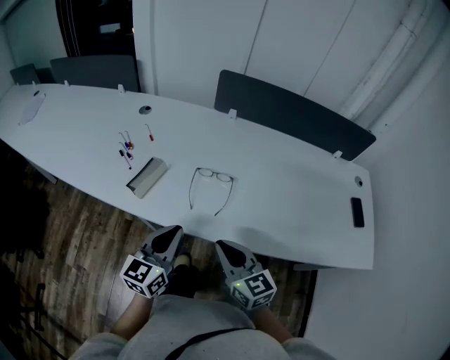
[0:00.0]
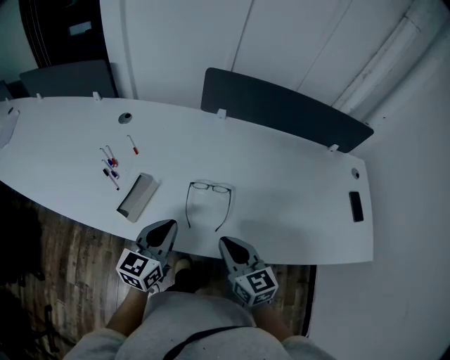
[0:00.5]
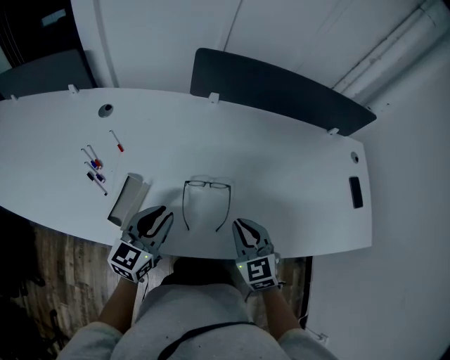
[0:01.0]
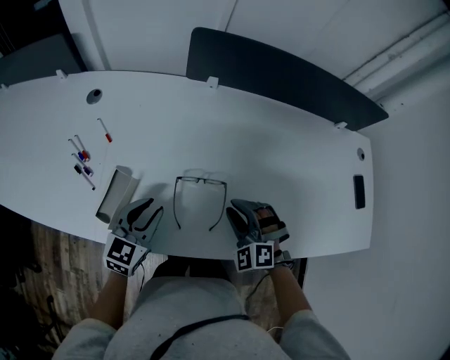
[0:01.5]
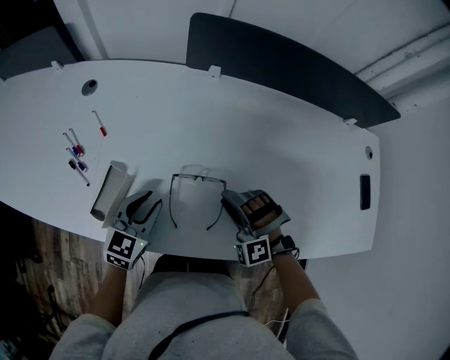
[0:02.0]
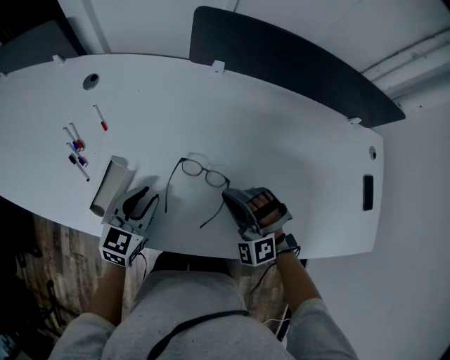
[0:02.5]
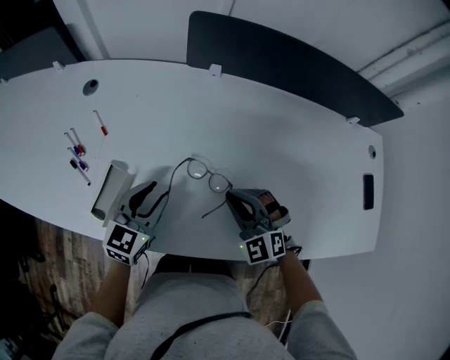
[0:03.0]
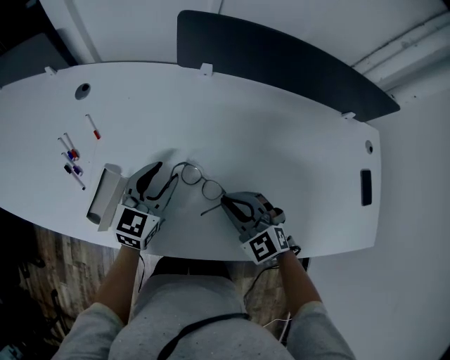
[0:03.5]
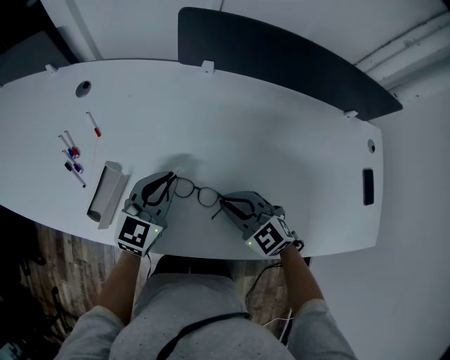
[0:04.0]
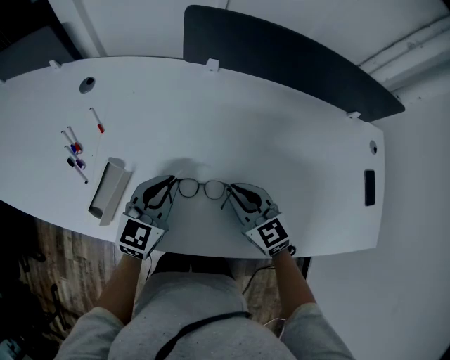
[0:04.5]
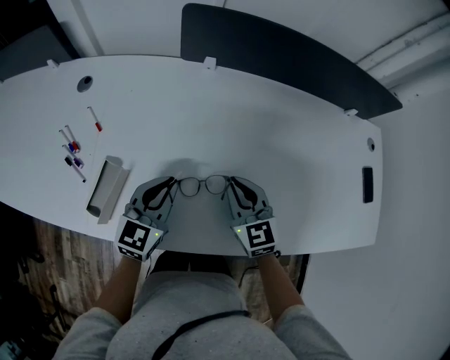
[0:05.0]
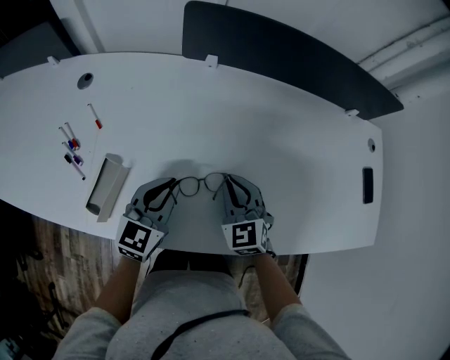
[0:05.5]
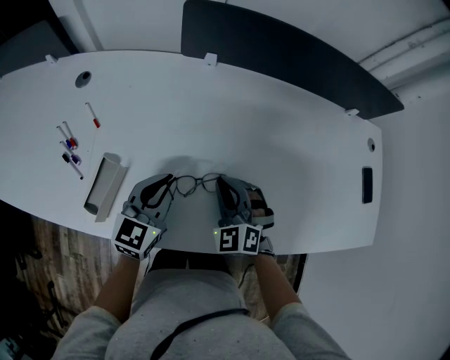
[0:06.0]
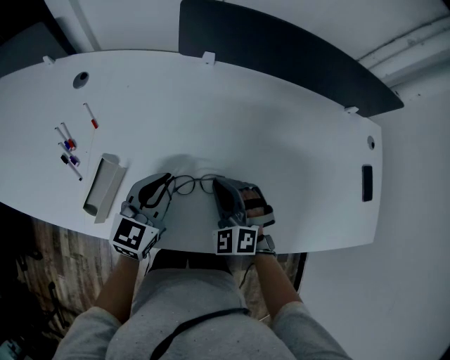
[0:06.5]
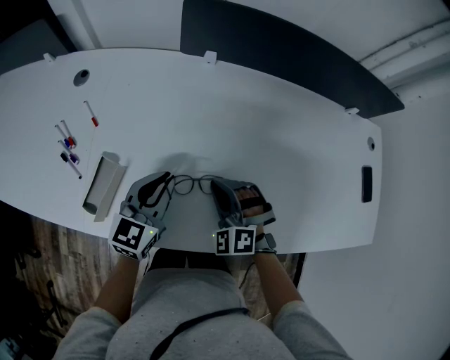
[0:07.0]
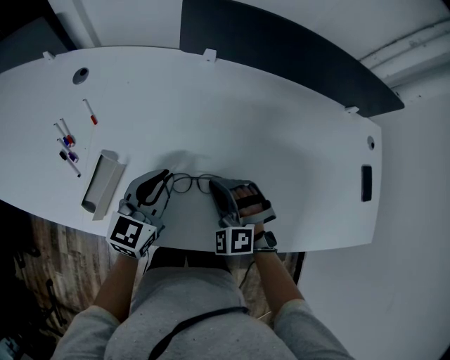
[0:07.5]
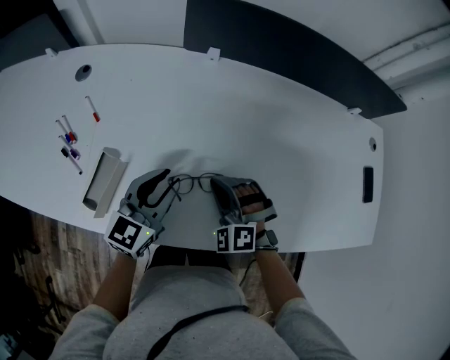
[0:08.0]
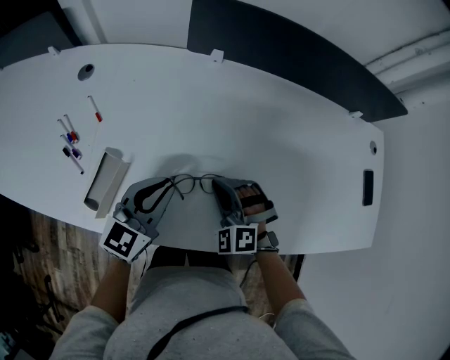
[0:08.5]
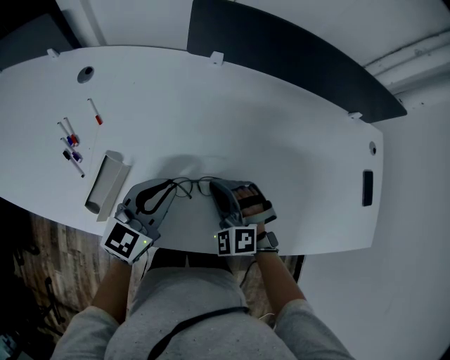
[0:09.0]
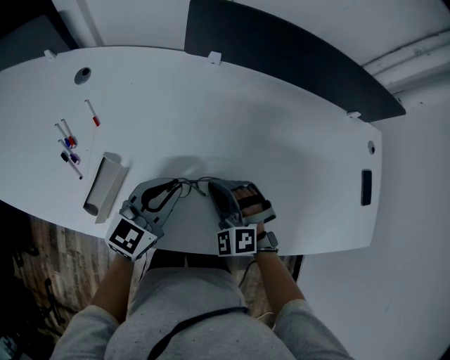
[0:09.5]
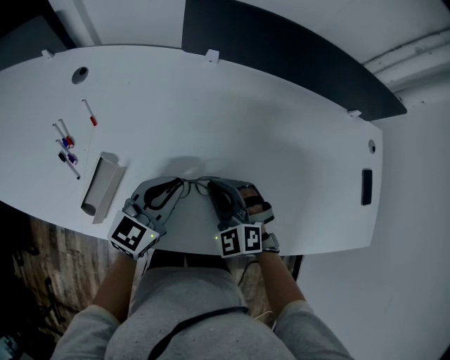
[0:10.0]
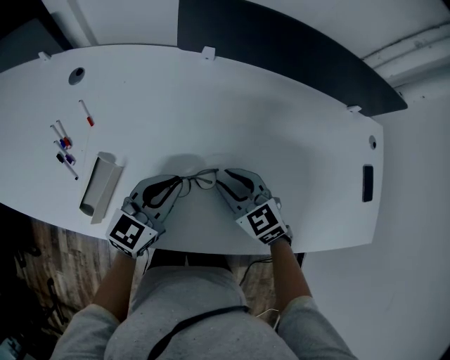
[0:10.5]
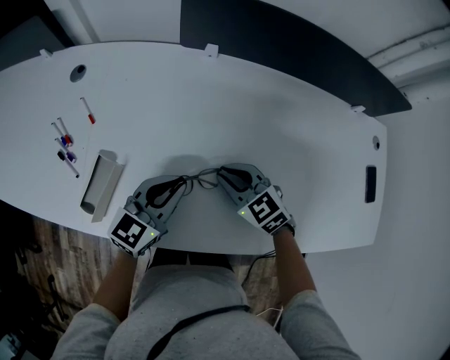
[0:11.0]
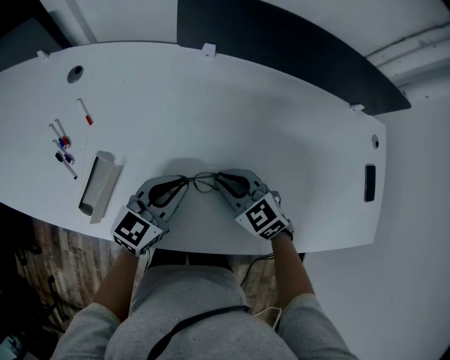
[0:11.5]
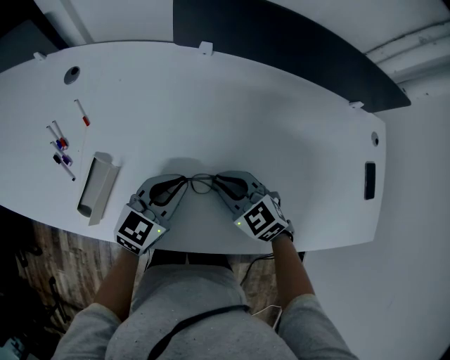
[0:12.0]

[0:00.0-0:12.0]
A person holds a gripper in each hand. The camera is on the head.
0:00.0 to 0:02.0: The grippers both shift forward and downward by approximately 25 cm. The right gripper rolls counterclockwise, seen from behind, by some 80 degrees, and opens. Meanwhile the left gripper swivels about 30 degrees, and opens its fingers.
0:02.0 to 0:04.0: The right gripper rotates around the line of its fingers by about 50 degrees, clockwise from behind, and closes its fingers; the left gripper heads to the right, covering some 5 cm.
0:04.0 to 0:06.0: The right gripper turns by some 30 degrees.
0:06.0 to 0:08.0: The right gripper rotates roughly 20 degrees.
0:08.0 to 0:10.0: There are only small adjustments of the grippers.
0:10.0 to 0:12.0: The right gripper rotates some 30 degrees.

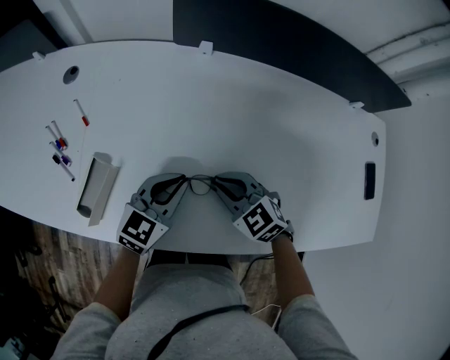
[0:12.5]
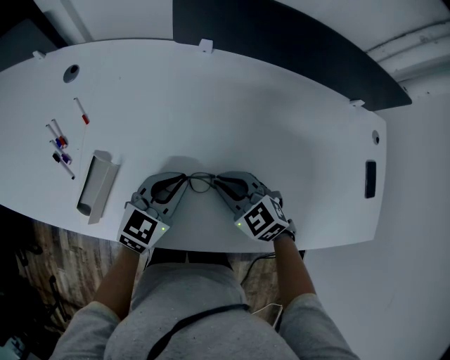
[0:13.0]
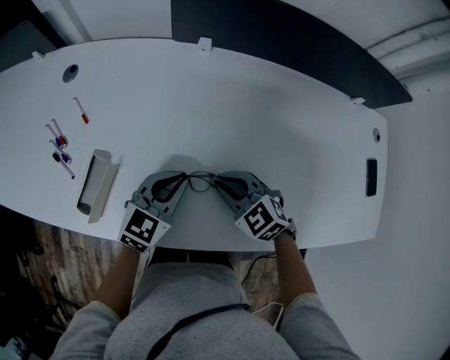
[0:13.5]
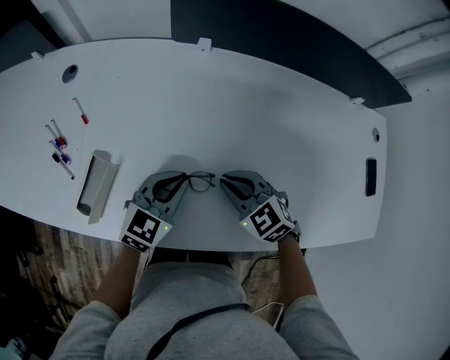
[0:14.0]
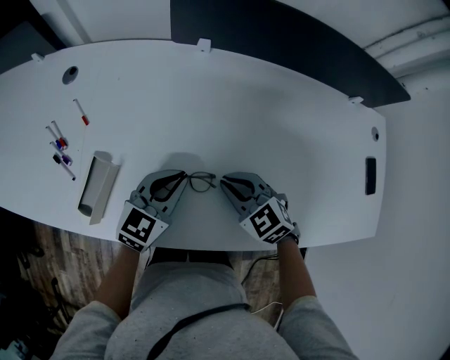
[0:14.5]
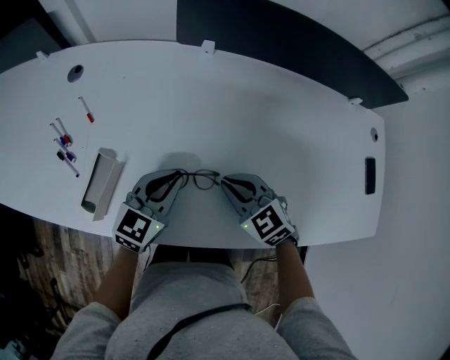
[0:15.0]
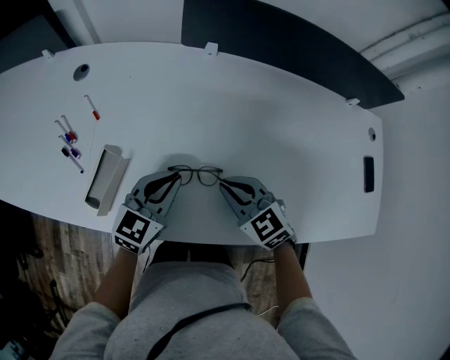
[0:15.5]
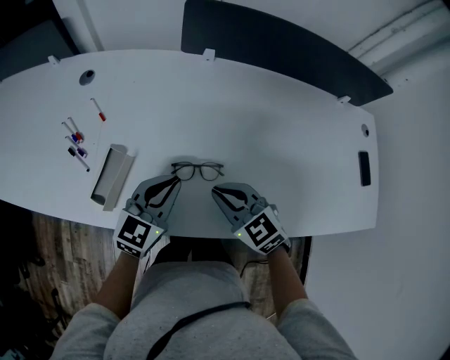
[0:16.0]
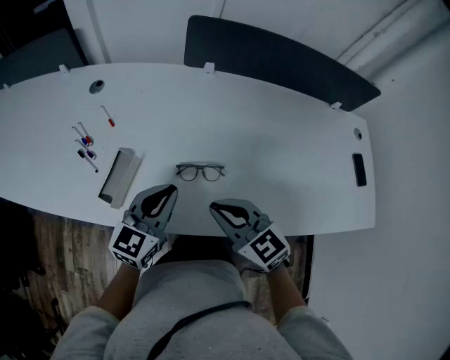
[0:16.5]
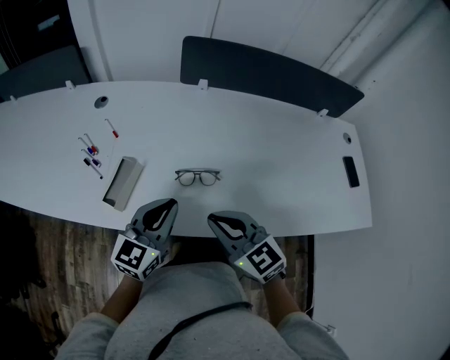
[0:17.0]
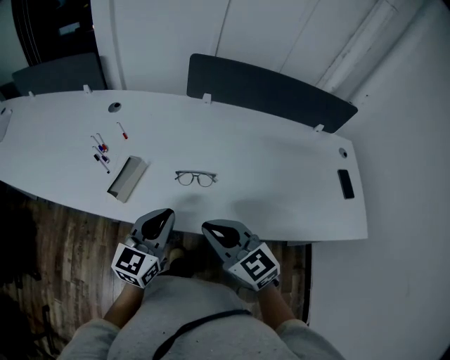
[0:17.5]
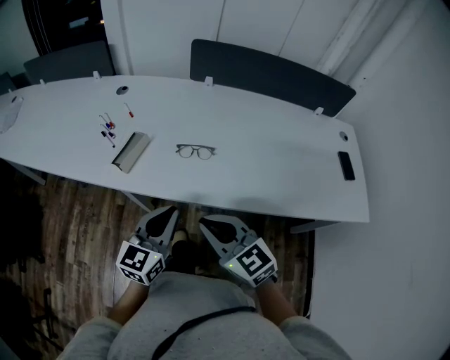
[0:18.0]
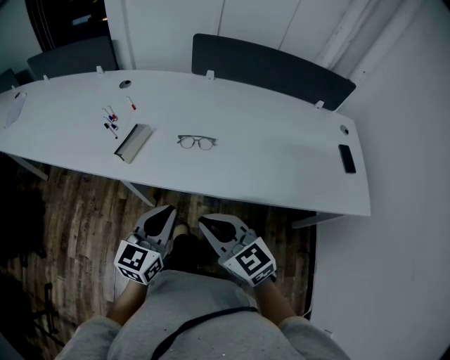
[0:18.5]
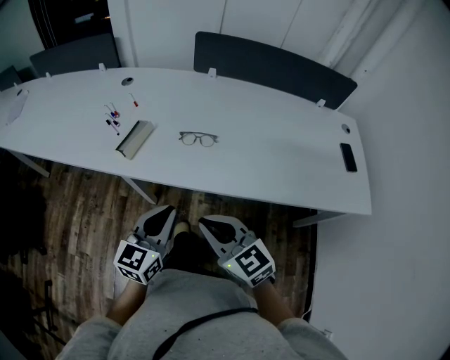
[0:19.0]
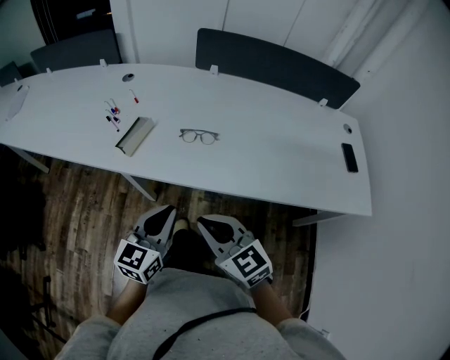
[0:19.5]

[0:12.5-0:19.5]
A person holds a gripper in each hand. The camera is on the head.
0:12.5 to 0:14.5: The grippers make only small movements.
0:14.5 to 0:16.0: The right gripper moves backward, to the left and upward, about 10 cm, while the left gripper moves to the left and backward, approximately 10 cm.
0:16.0 to 0:17.5: Both grippers move backward and upward, roughly 20 cm.
0:17.5 to 0:19.5: The two grippers go some 15 cm backward.

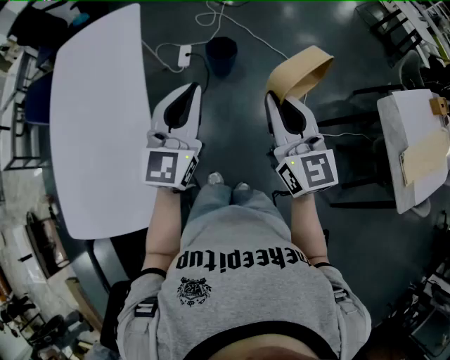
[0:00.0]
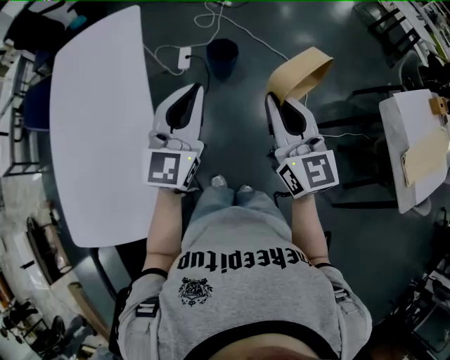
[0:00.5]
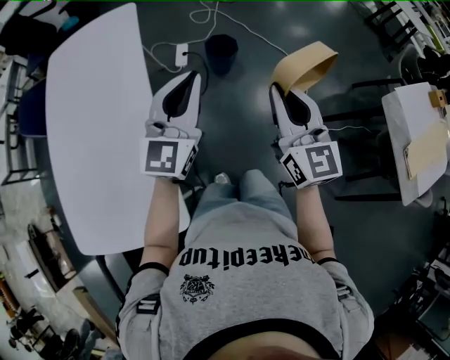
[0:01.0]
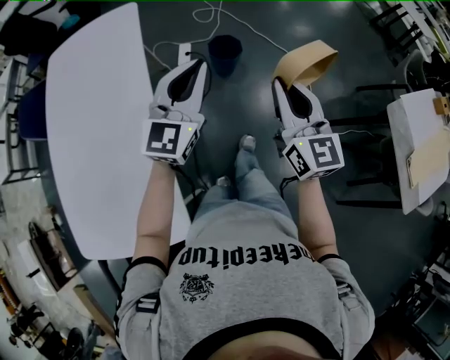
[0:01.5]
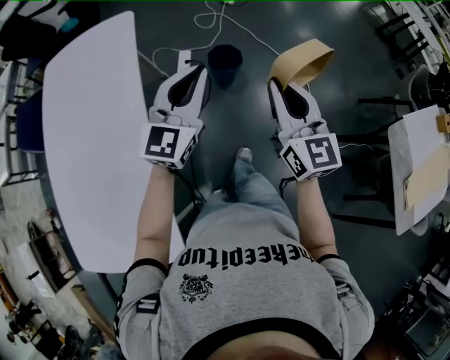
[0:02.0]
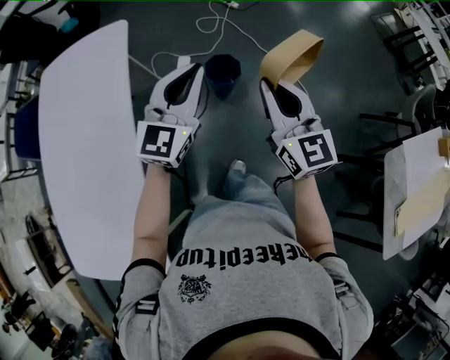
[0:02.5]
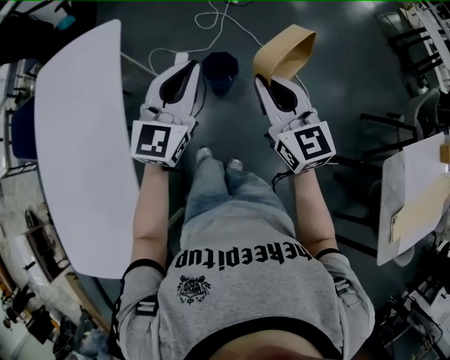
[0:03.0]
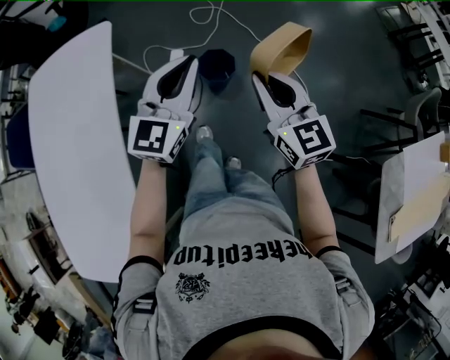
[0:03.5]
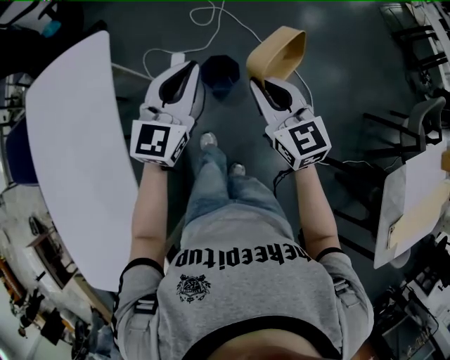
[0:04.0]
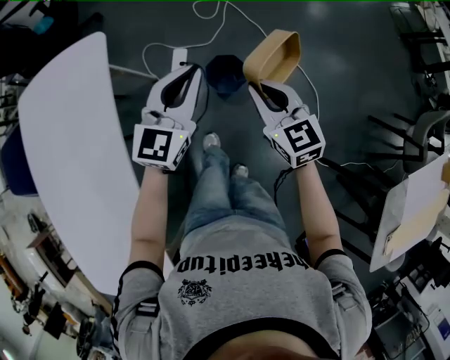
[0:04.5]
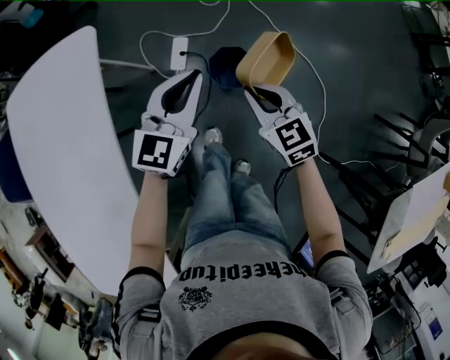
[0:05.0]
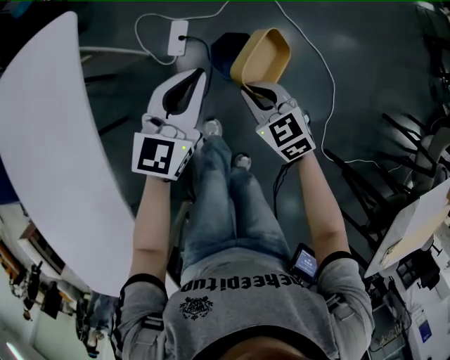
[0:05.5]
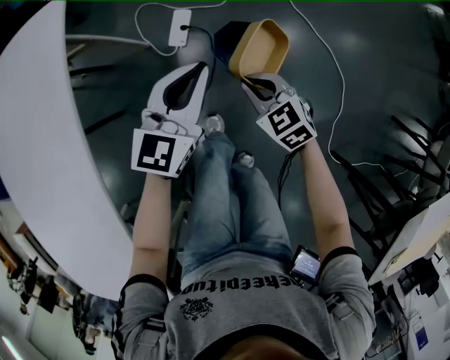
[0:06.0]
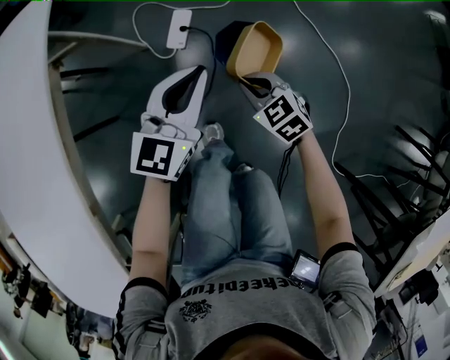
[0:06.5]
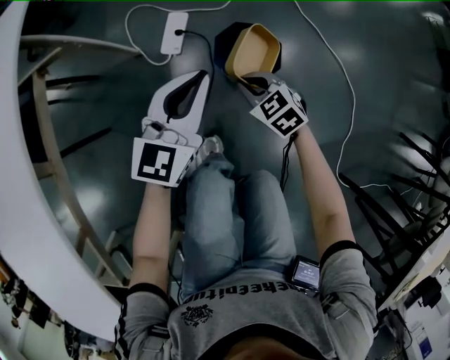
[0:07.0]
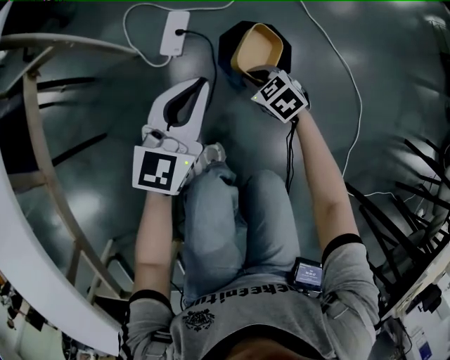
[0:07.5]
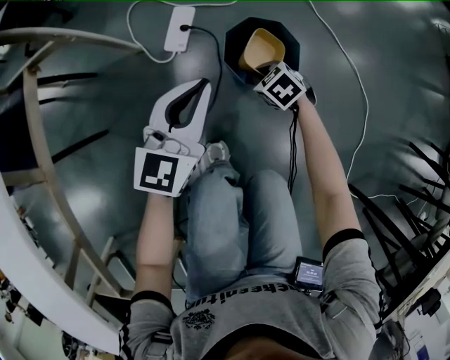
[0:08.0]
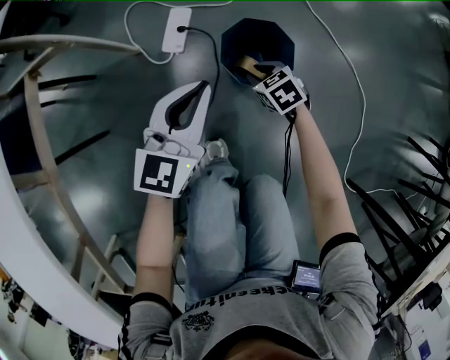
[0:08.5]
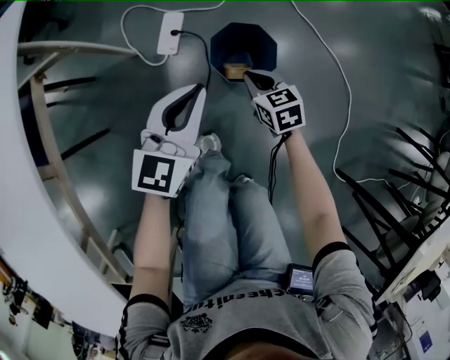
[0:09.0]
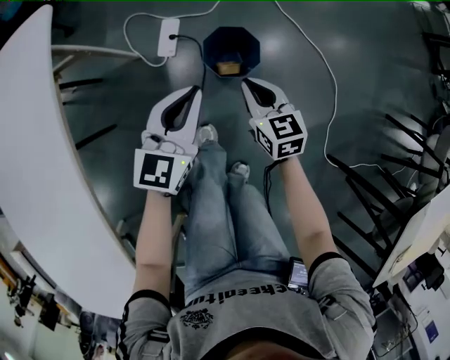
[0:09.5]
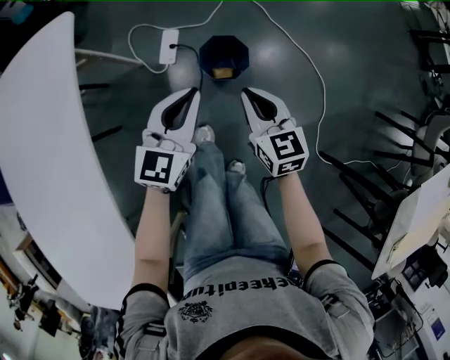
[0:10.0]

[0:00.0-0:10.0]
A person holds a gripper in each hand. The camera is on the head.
0:00.0 to 0:02.0: Both grippers move forward, roughly 20 cm.
0:02.0 to 0:04.0: The two grippers go roughly 25 cm forward.
0:04.0 to 0:06.0: The left gripper goes approximately 25 cm downward and forward. Meanwhile the right gripper travels downward by some 35 cm, and turns by roughly 40 degrees.
0:06.0 to 0:08.0: The left gripper goes some 20 cm downward, while the right gripper goes approximately 30 cm downward, and changes its angle by roughly 20 degrees.
0:08.0 to 0:10.0: The right gripper moves upward, approximately 40 cm, and angles its fingers upward, by about 40 degrees. The left gripper goes some 25 cm upward.
